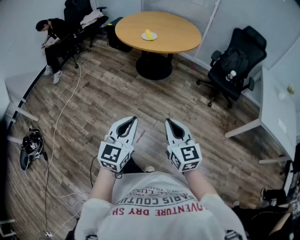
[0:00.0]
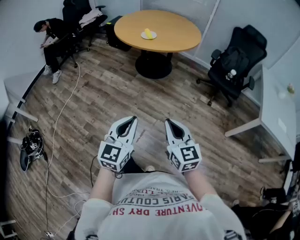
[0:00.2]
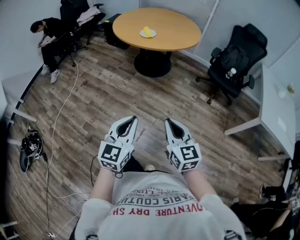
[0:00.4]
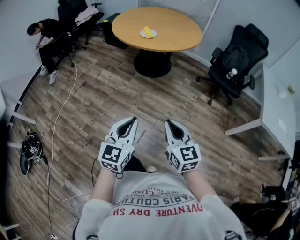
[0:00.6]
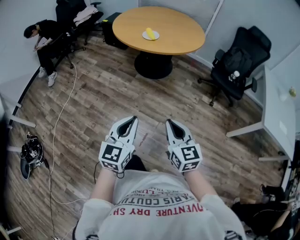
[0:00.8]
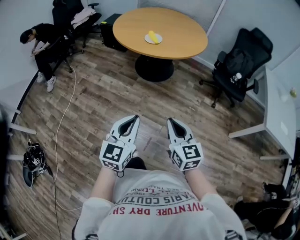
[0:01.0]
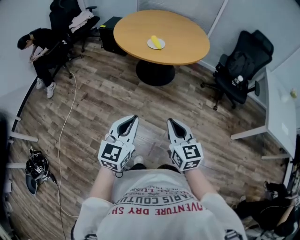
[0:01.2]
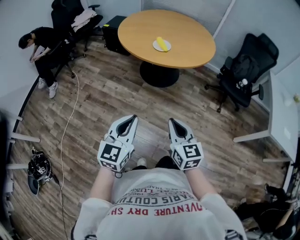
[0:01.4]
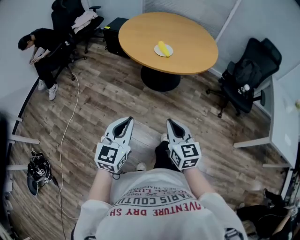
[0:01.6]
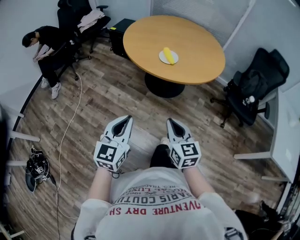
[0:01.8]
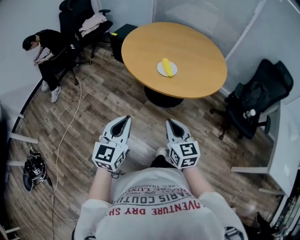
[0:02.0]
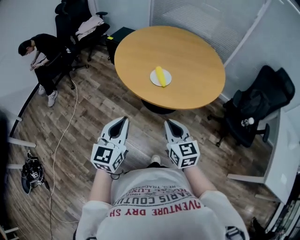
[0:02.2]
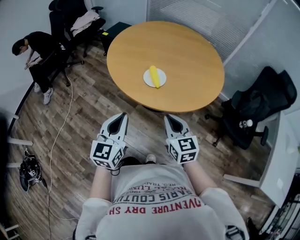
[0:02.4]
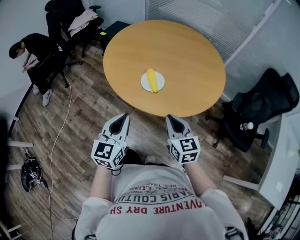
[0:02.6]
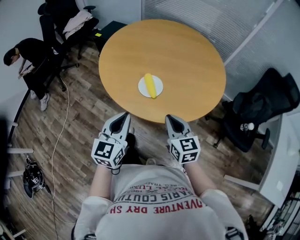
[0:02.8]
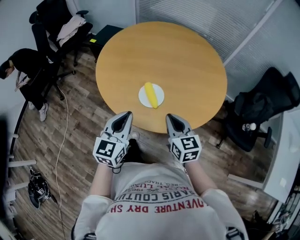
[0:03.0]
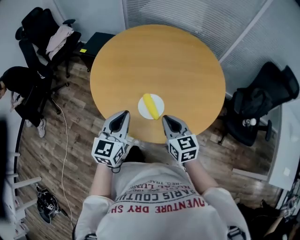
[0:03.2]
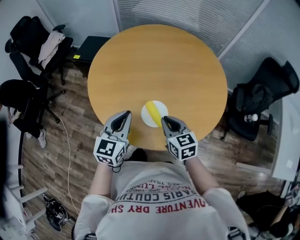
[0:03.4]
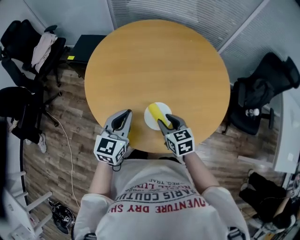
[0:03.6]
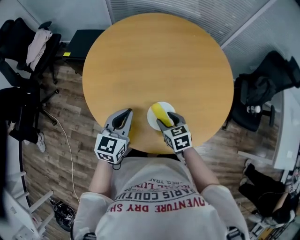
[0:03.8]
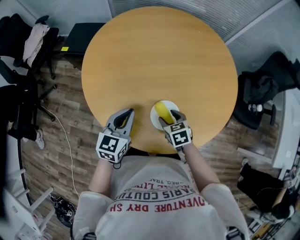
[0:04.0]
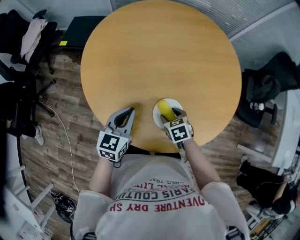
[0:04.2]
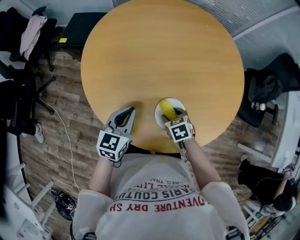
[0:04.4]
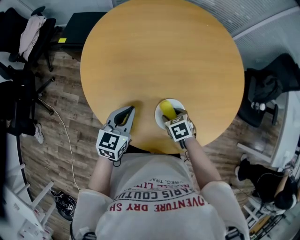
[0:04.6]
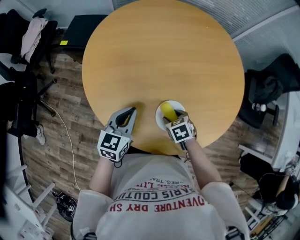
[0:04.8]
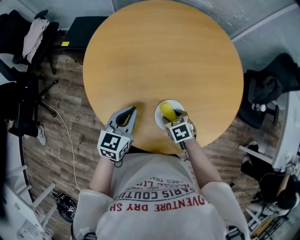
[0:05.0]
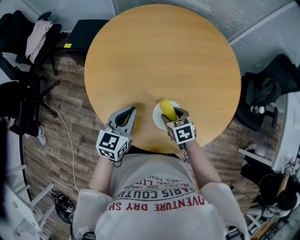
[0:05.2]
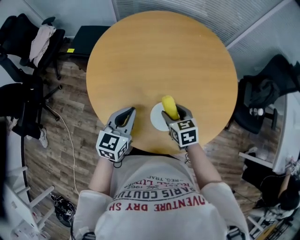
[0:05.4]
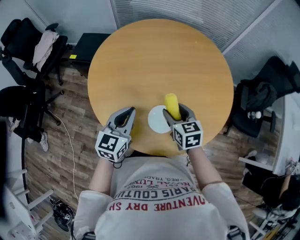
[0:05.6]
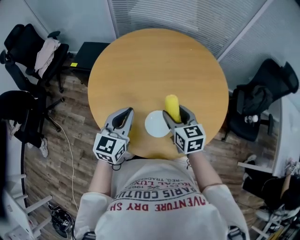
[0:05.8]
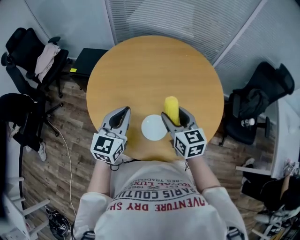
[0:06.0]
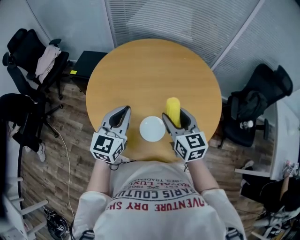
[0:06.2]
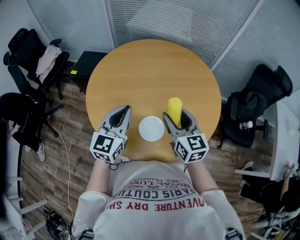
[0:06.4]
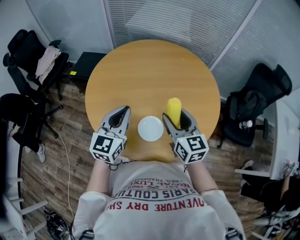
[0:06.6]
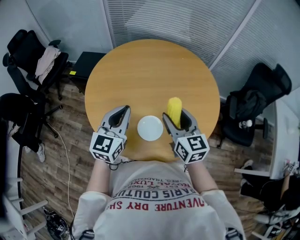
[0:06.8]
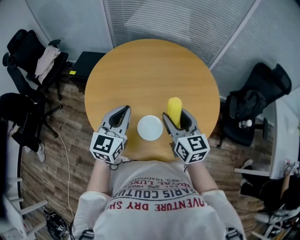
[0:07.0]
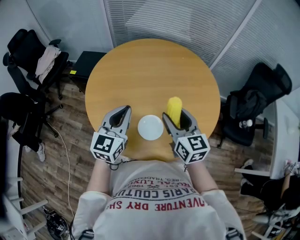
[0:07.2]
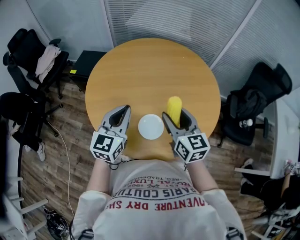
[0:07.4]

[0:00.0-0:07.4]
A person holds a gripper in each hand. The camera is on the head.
0:00.0 to 0:01.4: The two grippers go some 30 cm forward and to the left.
0:01.4 to 0:03.0: Both grippers are carried forward, about 50 cm.
0:03.0 to 0:04.4: The left gripper heads forward and downward, covering approximately 25 cm, and turns by some 20 degrees, while the right gripper goes approximately 25 cm downward and forward, angles its fingers downward, by some 40 degrees, and opens.
0:04.4 to 0:06.0: The right gripper heads upward, covering approximately 30 cm, and points its fingers approximately 40 degrees further upward, while the left gripper goes approximately 20 cm upward, and swivels roughly 20 degrees.
0:06.0 to 0:07.4: The grippers stay close to where they were, moving slightly.

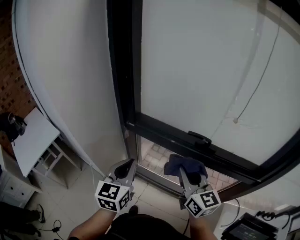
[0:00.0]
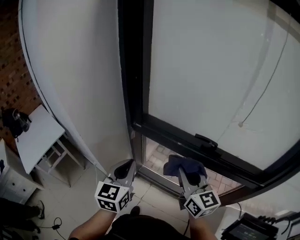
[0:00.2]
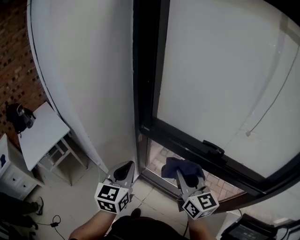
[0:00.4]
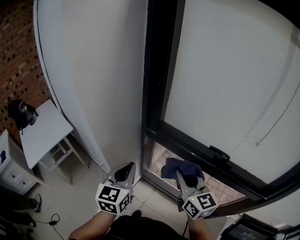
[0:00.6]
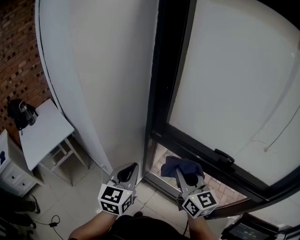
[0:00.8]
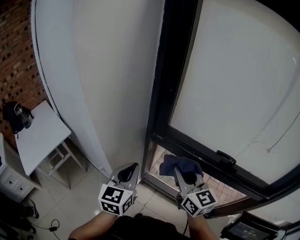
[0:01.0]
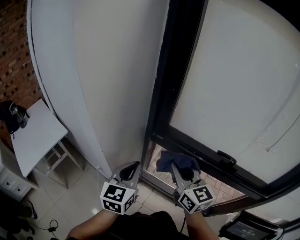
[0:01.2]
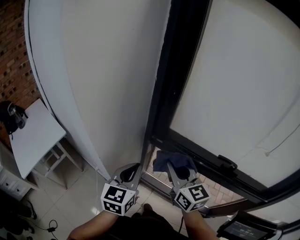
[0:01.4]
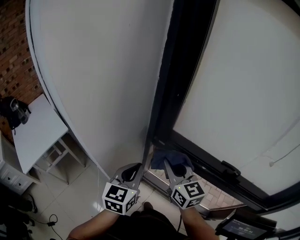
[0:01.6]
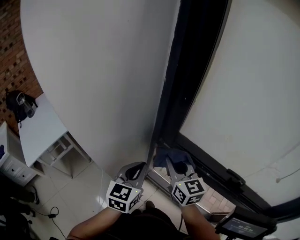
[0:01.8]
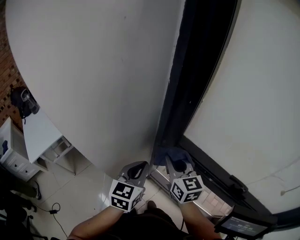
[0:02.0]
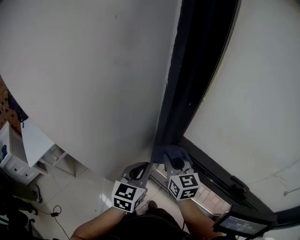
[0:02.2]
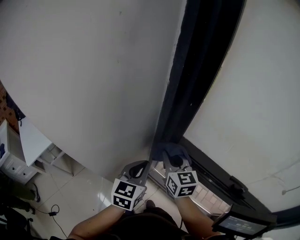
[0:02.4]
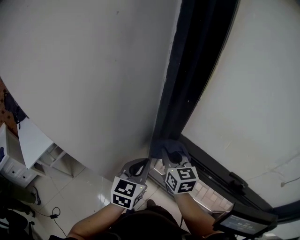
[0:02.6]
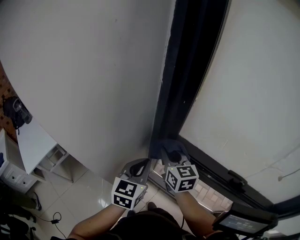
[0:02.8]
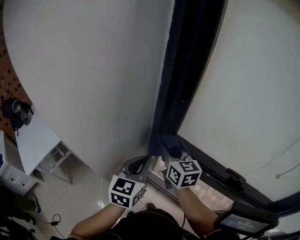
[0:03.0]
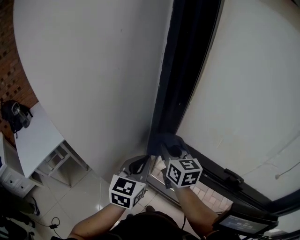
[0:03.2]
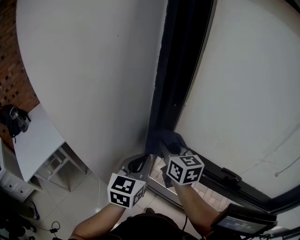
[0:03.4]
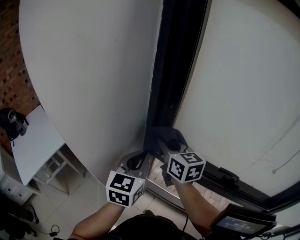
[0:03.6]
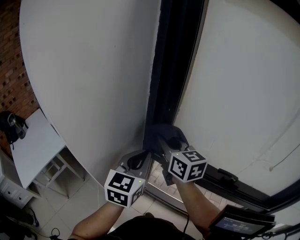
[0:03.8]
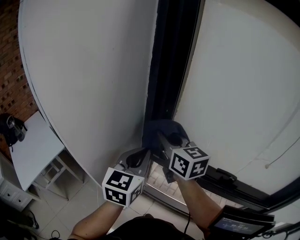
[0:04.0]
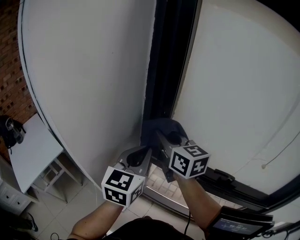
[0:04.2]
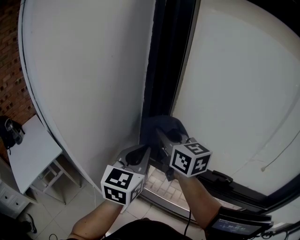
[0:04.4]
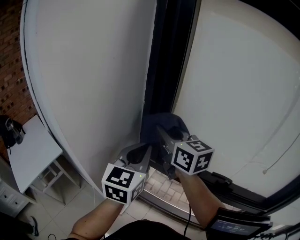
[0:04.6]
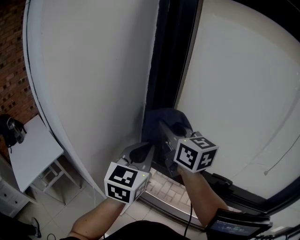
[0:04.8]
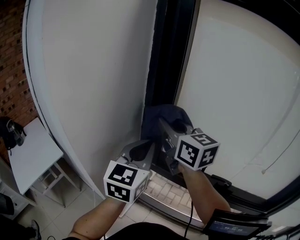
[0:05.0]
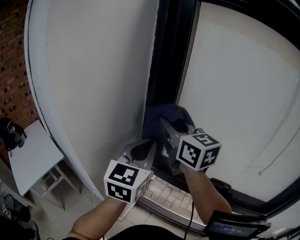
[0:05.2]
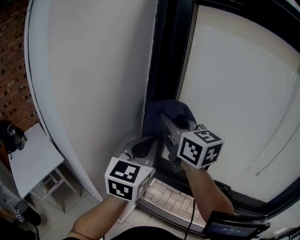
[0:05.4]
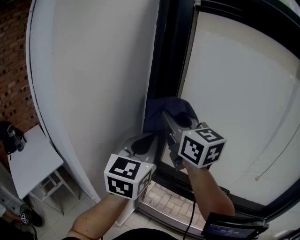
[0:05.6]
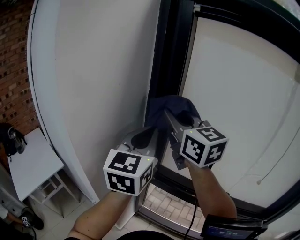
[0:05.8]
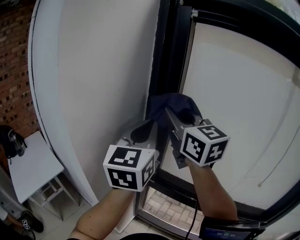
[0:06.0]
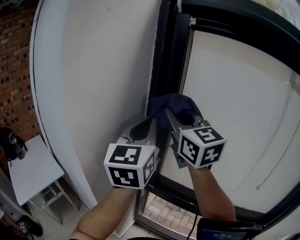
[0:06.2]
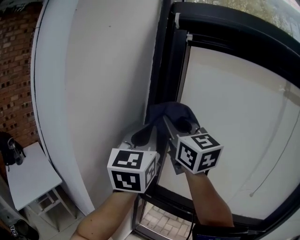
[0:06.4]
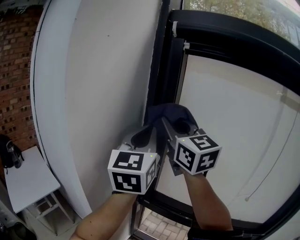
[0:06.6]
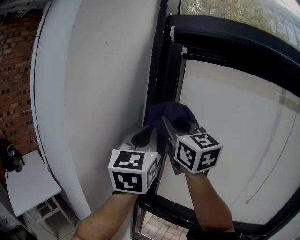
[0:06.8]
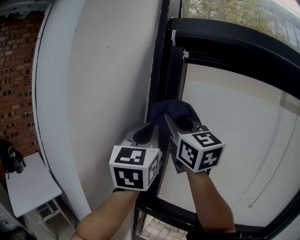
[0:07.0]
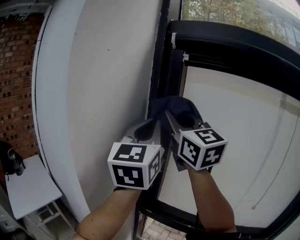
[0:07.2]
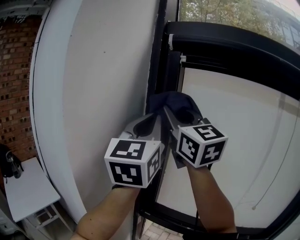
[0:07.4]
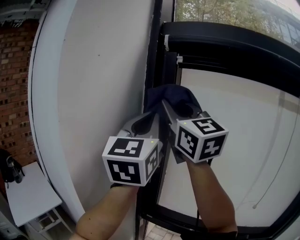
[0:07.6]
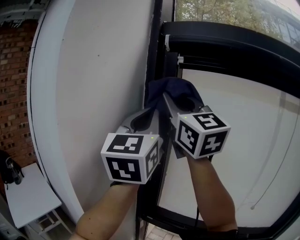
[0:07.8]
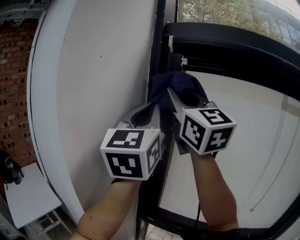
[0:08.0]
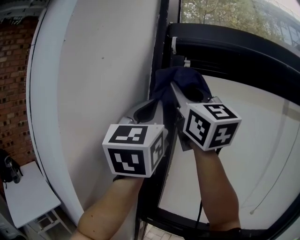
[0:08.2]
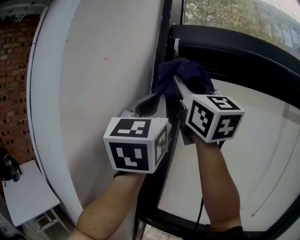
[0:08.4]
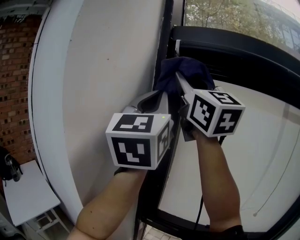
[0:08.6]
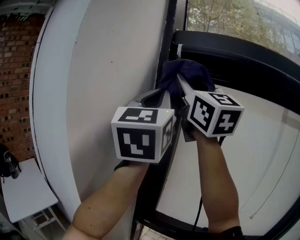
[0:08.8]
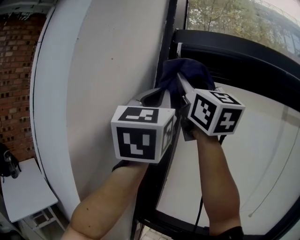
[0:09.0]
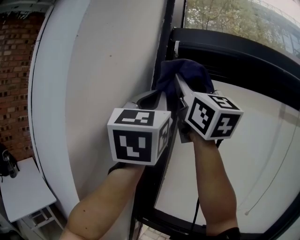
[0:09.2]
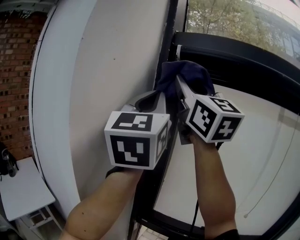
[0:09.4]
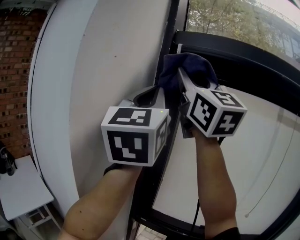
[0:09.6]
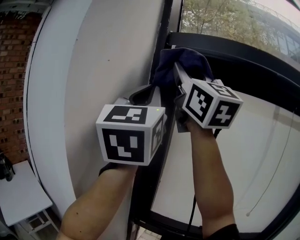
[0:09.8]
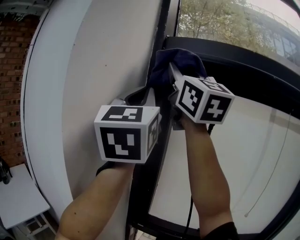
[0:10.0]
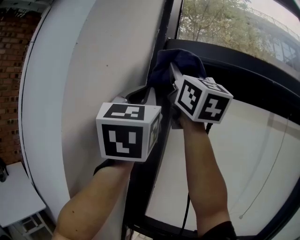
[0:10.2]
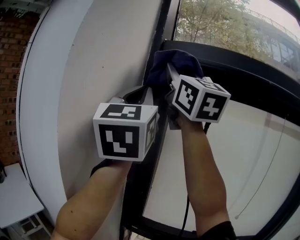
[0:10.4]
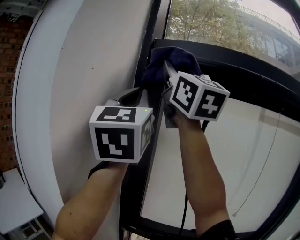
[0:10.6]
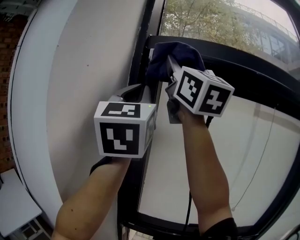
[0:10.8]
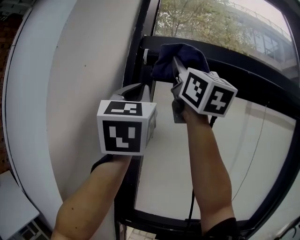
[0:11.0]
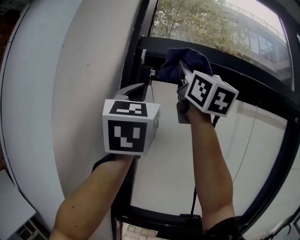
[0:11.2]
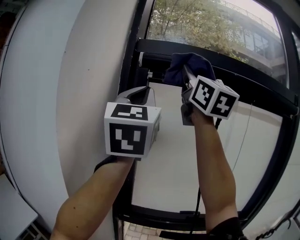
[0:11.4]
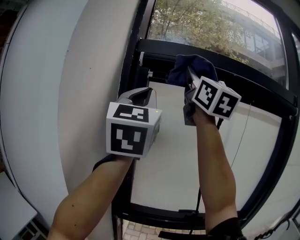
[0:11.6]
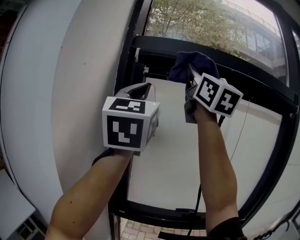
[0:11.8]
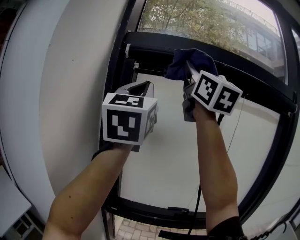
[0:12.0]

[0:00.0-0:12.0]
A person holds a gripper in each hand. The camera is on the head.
0:00.0 to 0:01.6: The left gripper travels forward and to the left by about 15 cm, while the right gripper moves to the left and forward, roughly 25 cm.
0:01.6 to 0:03.0: The left gripper shifts approximately 5 cm forward. Meanwhile the right gripper heads forward, covering approximately 10 cm.
0:03.0 to 0:04.4: The two grippers go roughly 15 cm upward.
0:04.4 to 0:06.0: Both grippers travel together upward, approximately 20 cm. The right gripper swivels roughly 20 degrees.
0:06.0 to 0:07.6: Both grippers travel together upward, about 15 cm. The right gripper swivels approximately 20 degrees.
0:07.6 to 0:09.0: The two grippers go some 10 cm upward.
0:09.0 to 0:10.4: The right gripper heads upward, covering about 5 cm.
0:10.4 to 0:12.0: The right gripper goes some 20 cm to the right and backward; the left gripper travels to the right by some 10 cm.

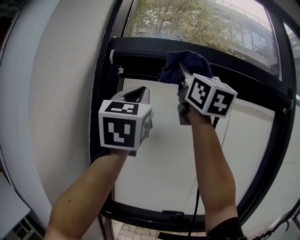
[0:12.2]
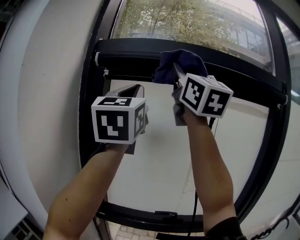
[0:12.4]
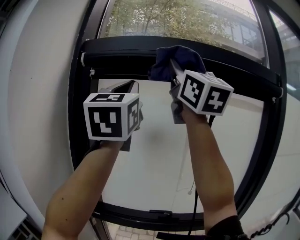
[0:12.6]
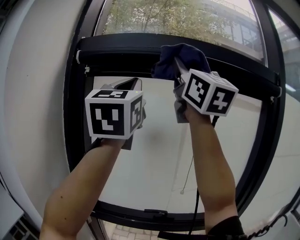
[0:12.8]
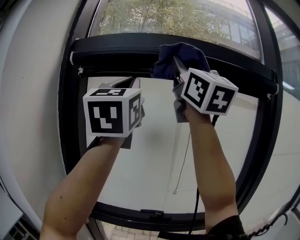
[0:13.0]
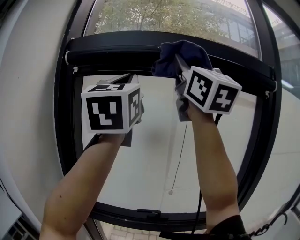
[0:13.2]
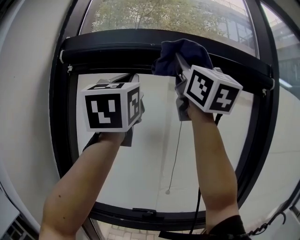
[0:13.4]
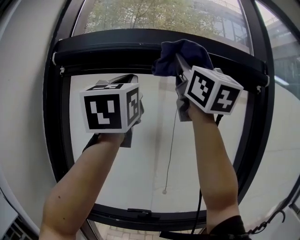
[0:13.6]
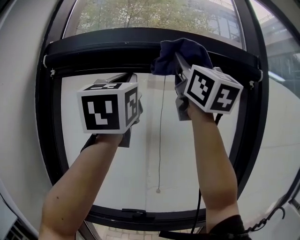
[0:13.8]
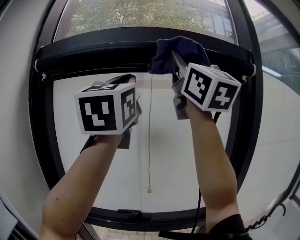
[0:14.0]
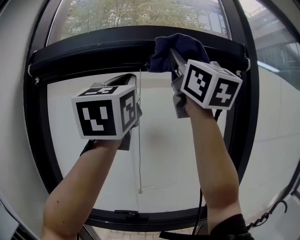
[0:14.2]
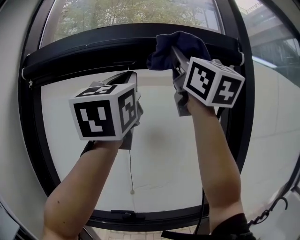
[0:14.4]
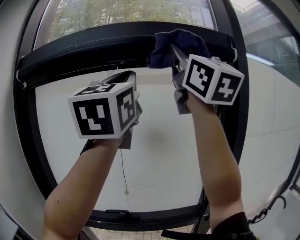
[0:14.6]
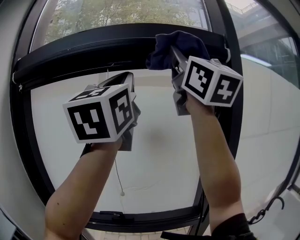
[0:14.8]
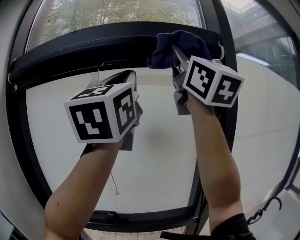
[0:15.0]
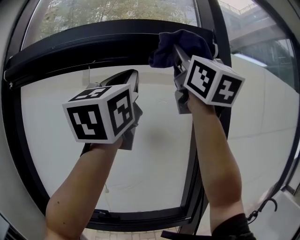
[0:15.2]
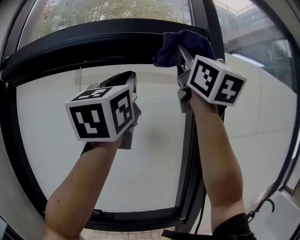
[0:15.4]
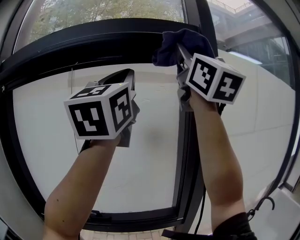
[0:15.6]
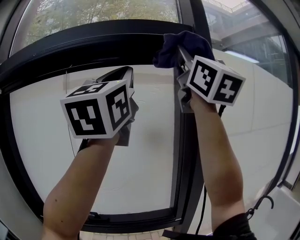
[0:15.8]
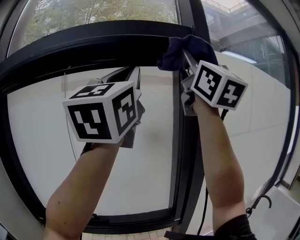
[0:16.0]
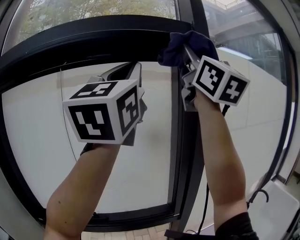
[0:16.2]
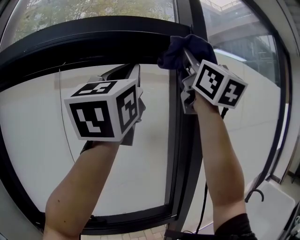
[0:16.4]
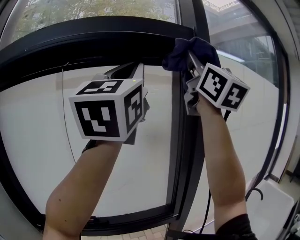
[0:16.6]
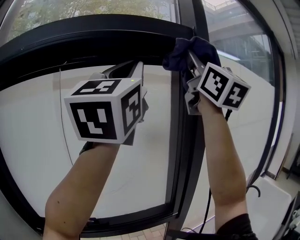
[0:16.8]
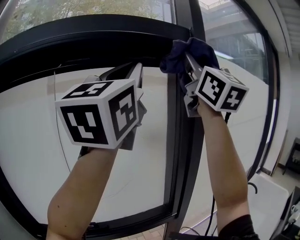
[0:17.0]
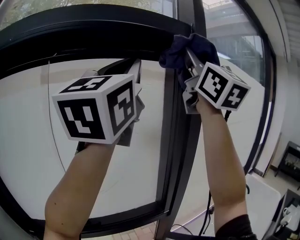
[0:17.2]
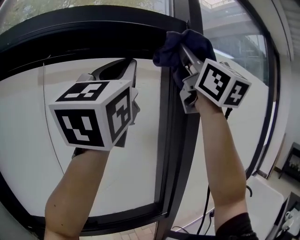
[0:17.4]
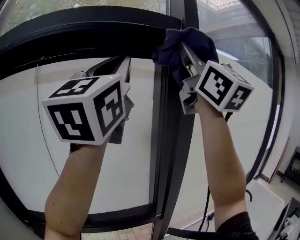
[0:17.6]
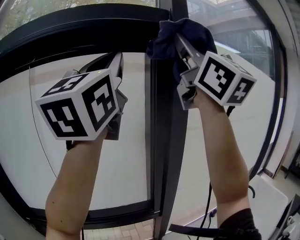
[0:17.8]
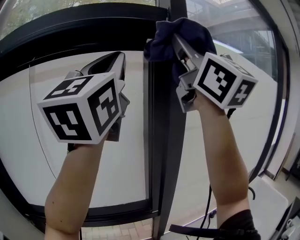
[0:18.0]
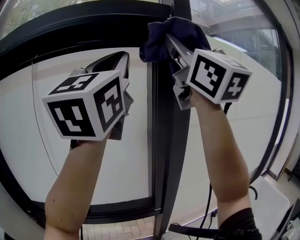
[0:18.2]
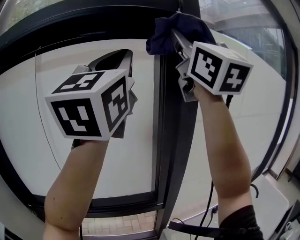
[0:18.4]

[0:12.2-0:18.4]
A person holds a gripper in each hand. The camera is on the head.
0:12.2 to 0:13.8: The grippers both shift to the right by roughly 20 cm.
0:13.8 to 0:15.4: The grippers both shift to the right by approximately 30 cm.
0:15.4 to 0:16.8: There are only small adjustments of the grippers.
0:16.8 to 0:18.4: The left gripper moves to the right, some 5 cm.
